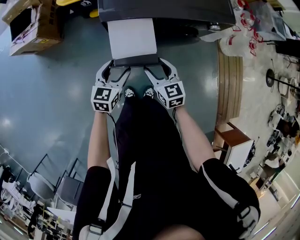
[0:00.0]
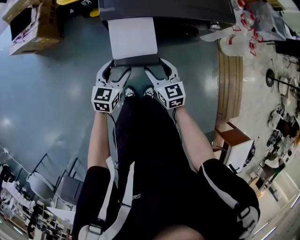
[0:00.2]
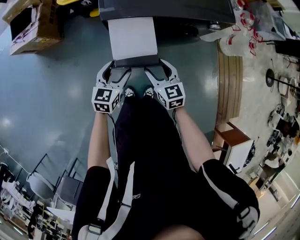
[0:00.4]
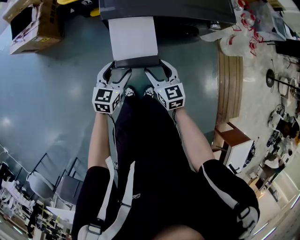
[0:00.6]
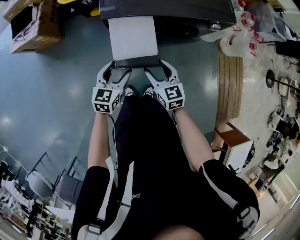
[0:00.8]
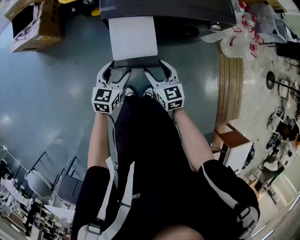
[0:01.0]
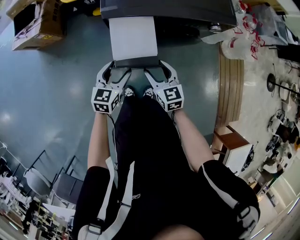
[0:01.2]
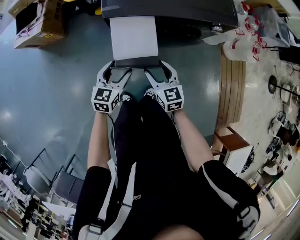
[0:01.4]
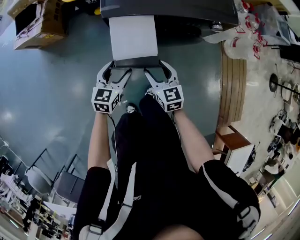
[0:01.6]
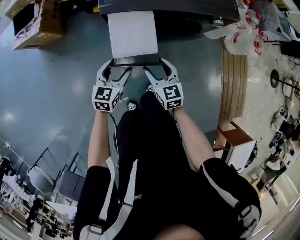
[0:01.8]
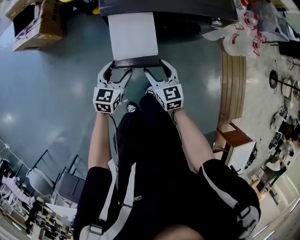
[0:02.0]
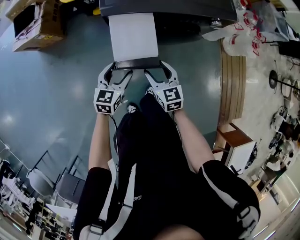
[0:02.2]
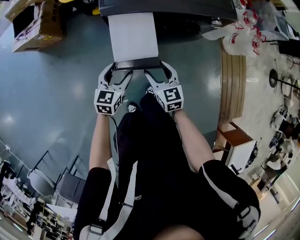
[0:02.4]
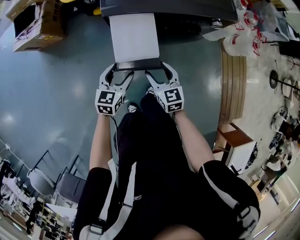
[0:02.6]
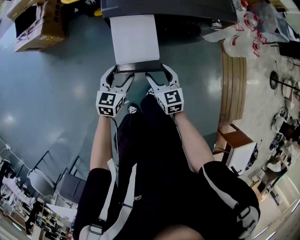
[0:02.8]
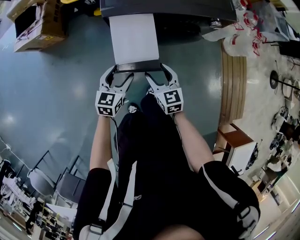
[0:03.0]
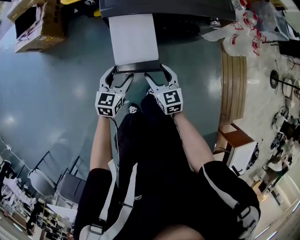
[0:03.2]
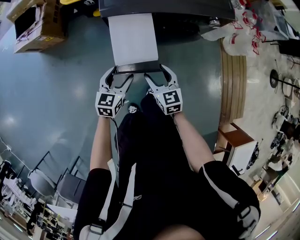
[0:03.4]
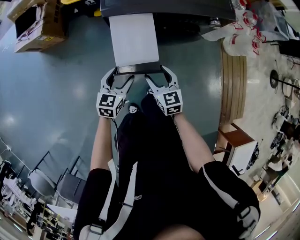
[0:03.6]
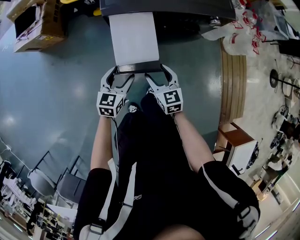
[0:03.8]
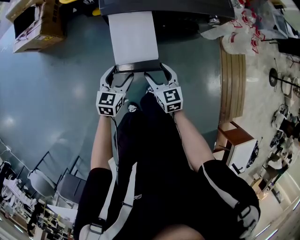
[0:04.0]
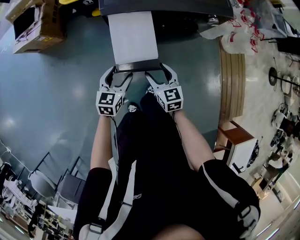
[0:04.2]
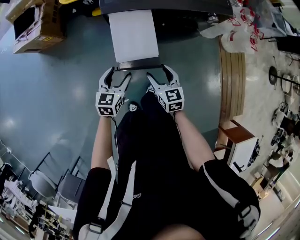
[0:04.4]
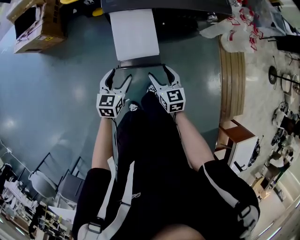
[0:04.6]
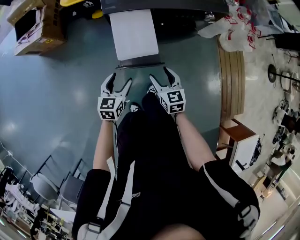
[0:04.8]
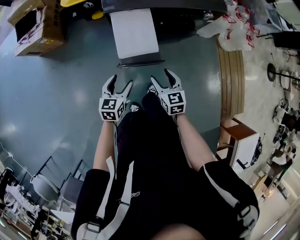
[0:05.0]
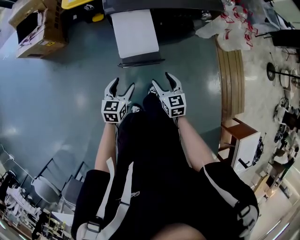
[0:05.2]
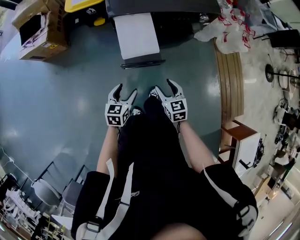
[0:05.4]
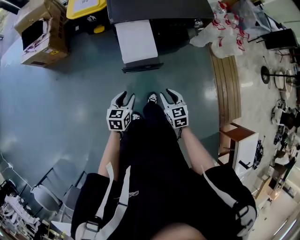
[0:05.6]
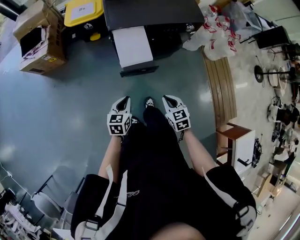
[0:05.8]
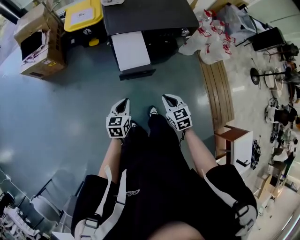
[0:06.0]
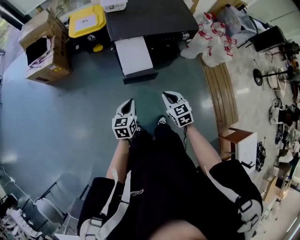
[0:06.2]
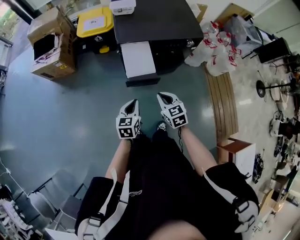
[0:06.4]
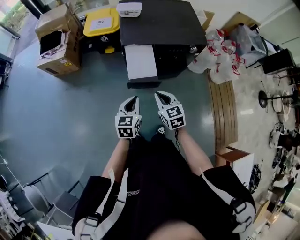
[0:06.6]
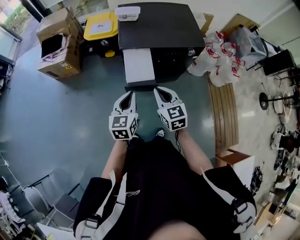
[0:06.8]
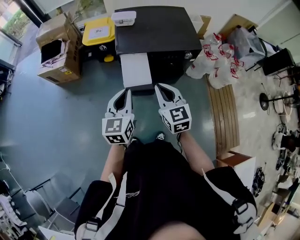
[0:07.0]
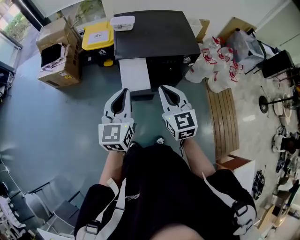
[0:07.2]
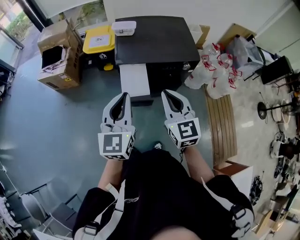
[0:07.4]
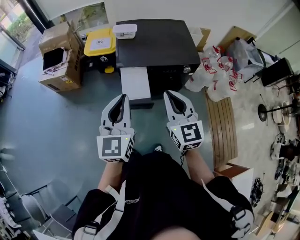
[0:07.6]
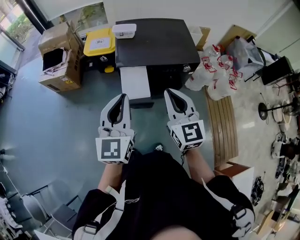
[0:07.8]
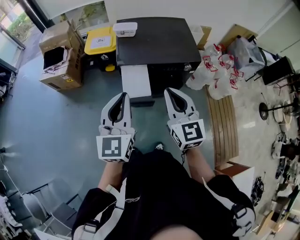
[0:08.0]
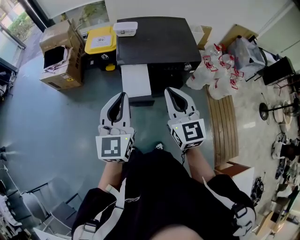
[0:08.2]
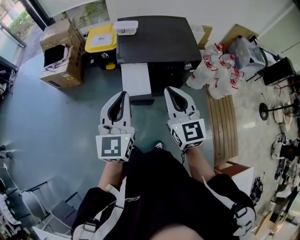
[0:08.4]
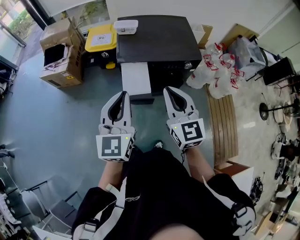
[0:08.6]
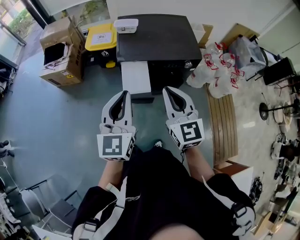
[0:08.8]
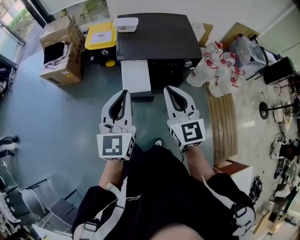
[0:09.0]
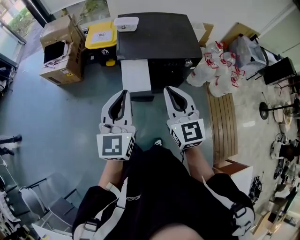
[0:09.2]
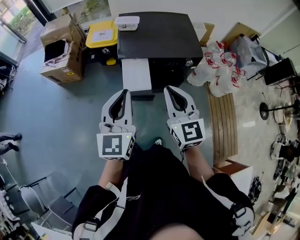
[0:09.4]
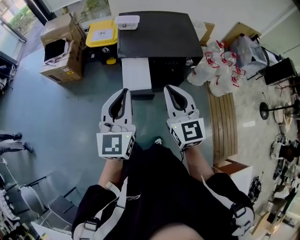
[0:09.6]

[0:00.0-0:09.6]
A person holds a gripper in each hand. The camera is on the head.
0:00.0 to 0:03.2: There are only small adjustments of the grippers.
0:03.2 to 0:04.8: The left gripper shifts about 5 cm backward; the right gripper moves about 5 cm.
0:04.8 to 0:06.4: The two grippers go roughly 15 cm upward and backward. The left gripper closes its fingers. The right gripper closes.
0:06.4 to 0:08.0: The grippers both shift upward by roughly 30 cm. The left gripper changes its angle by approximately 40 degrees. The right gripper changes its angle by roughly 30 degrees.
0:08.0 to 0:09.6: The grippers make only small movements.

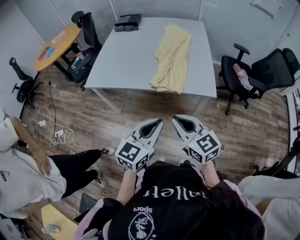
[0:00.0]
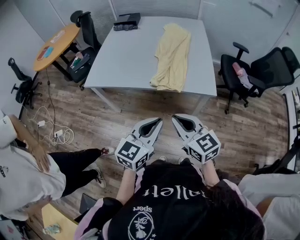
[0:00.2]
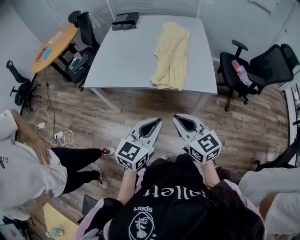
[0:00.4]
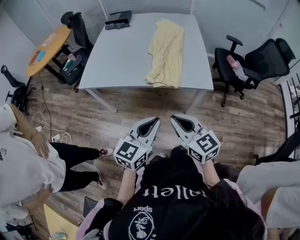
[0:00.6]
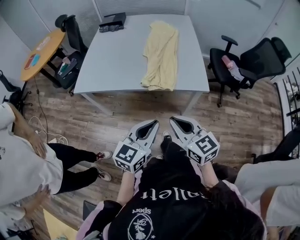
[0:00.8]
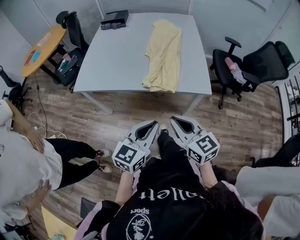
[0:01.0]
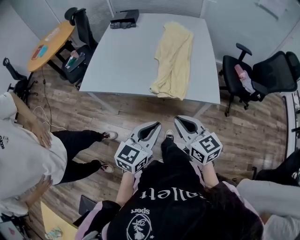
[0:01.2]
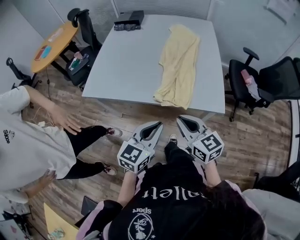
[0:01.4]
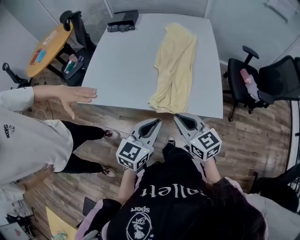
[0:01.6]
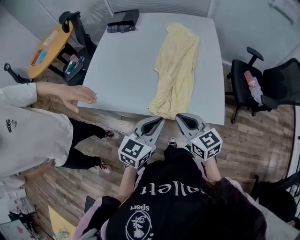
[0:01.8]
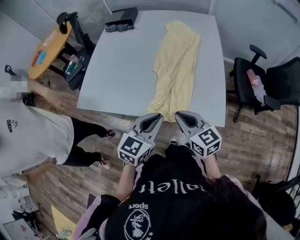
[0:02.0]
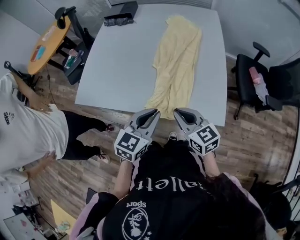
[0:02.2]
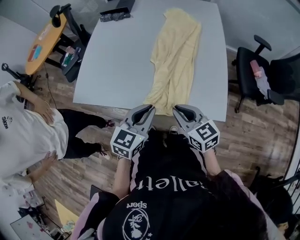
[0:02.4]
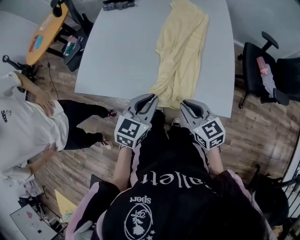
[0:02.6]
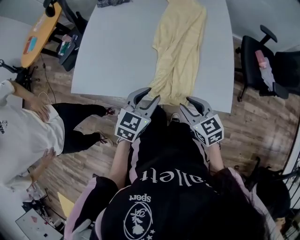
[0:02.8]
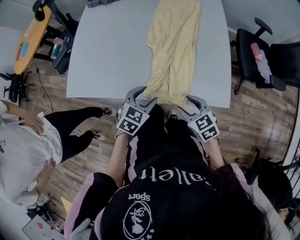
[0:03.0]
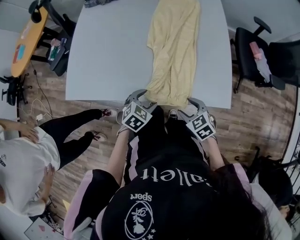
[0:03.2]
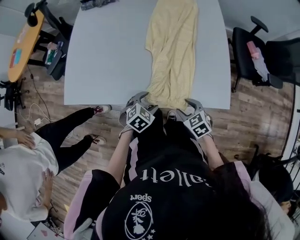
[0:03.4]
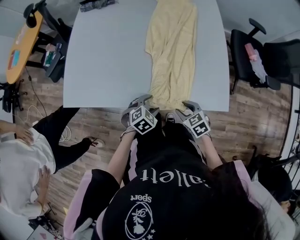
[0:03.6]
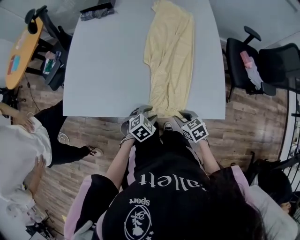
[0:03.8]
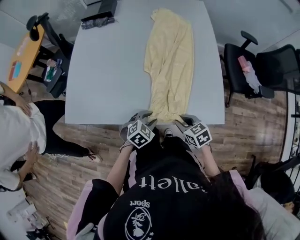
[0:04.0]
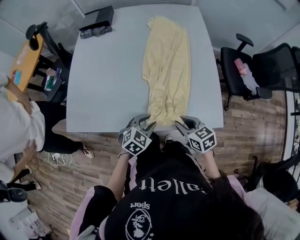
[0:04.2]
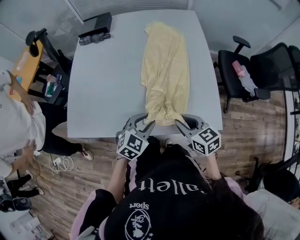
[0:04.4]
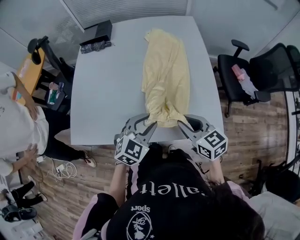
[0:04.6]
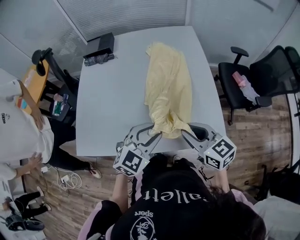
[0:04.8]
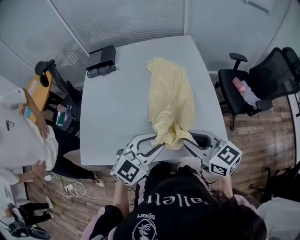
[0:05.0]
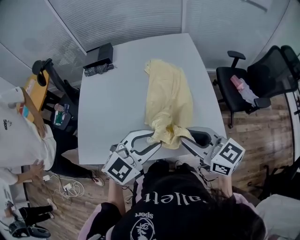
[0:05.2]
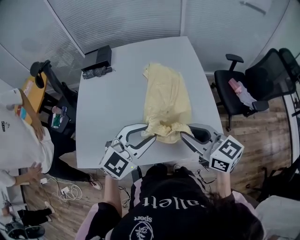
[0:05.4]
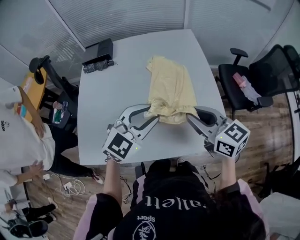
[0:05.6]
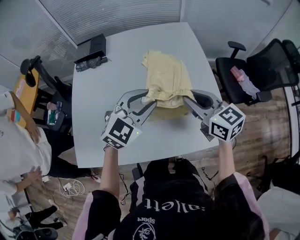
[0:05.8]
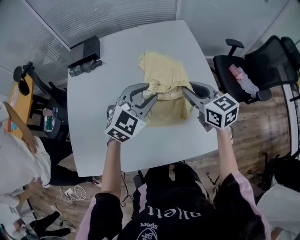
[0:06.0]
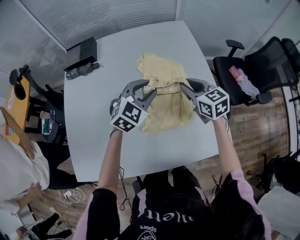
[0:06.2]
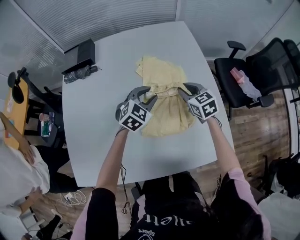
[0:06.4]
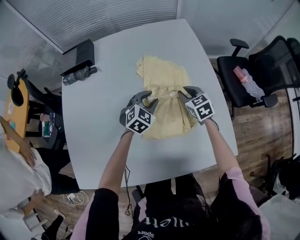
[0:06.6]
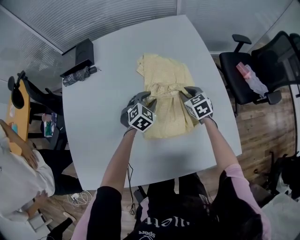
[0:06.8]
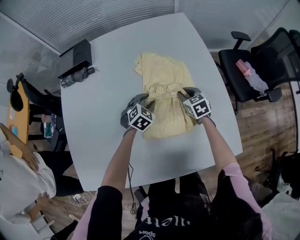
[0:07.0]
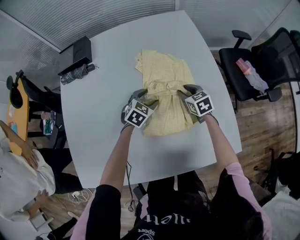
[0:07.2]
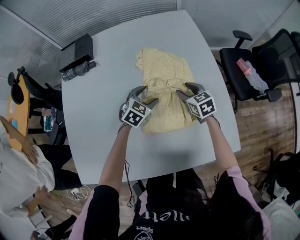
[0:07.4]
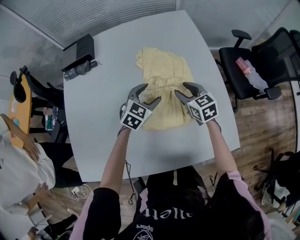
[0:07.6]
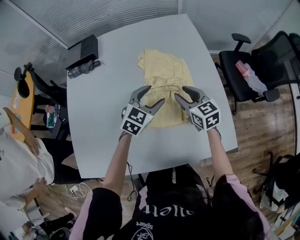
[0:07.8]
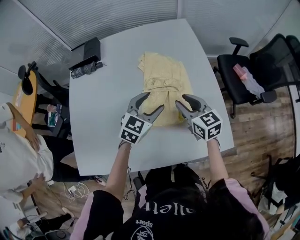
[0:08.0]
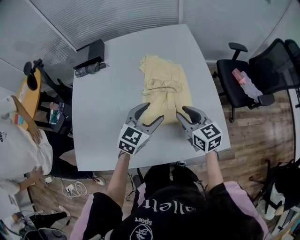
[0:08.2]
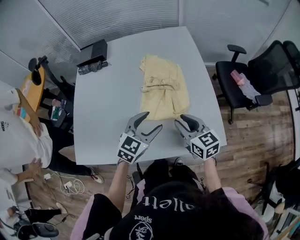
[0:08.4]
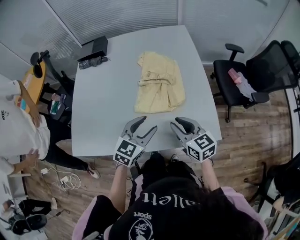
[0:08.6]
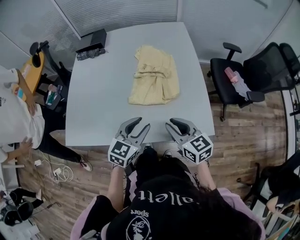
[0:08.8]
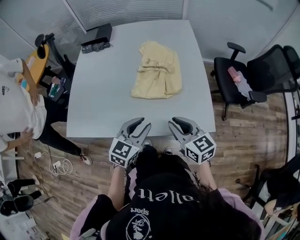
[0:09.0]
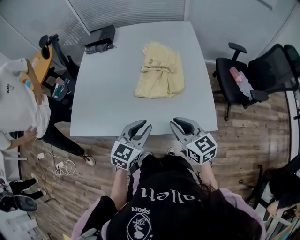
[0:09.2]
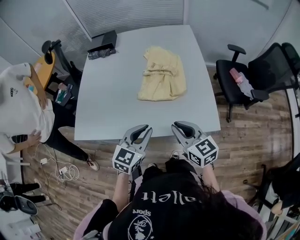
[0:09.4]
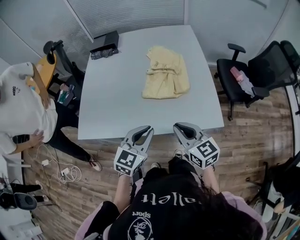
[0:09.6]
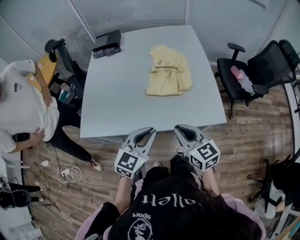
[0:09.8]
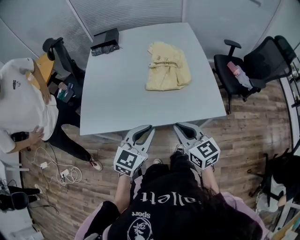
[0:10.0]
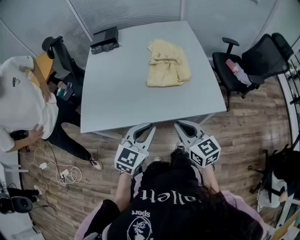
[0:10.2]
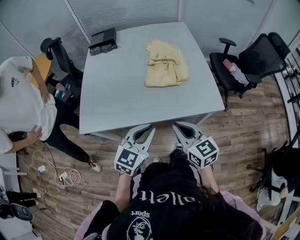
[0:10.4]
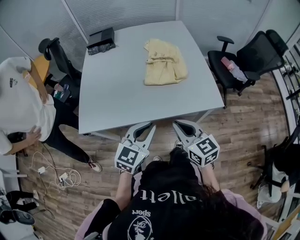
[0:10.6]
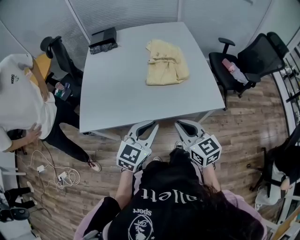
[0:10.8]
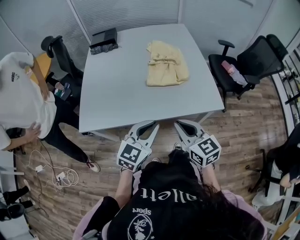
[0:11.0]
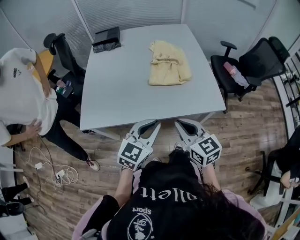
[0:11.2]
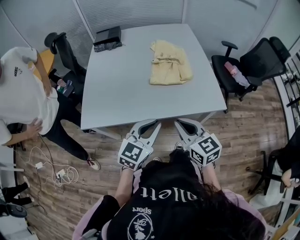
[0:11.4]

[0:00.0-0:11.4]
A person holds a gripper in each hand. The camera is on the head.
0:00.0 to 0:01.4: The two grippers go roughly 15 cm forward.
0:01.4 to 0:02.8: The left gripper moves forward and downward, roughly 20 cm, changes its angle by about 20 degrees, and opens; the right gripper shifts roughly 15 cm forward, downward and to the right, and opens its fingers.
0:02.8 to 0:04.2: The left gripper goes approximately 10 cm downward, changes its angle by about 20 degrees, and opens, then closes once more; the right gripper moves about 15 cm downward and comes back, and opens, then closes again.
0:04.2 to 0:05.6: The grippers both shift upward and forward by about 25 cm. The right gripper turns by about 30 degrees, while the left gripper swivels some 30 degrees.
0:05.6 to 0:07.2: The two grippers go roughly 40 cm downward and forward. The right gripper swivels roughly 30 degrees; the left gripper swivels approximately 30 degrees, and opens.
0:07.2 to 0:08.6: Both grippers move backward and upward, roughly 35 cm. The right gripper changes its angle by some 20 degrees. The left gripper swivels about 20 degrees.
0:08.6 to 0:10.0: Both grippers move backward and to the left, about 20 cm. The left gripper closes its fingers.
0:10.0 to 0:11.4: The right gripper shifts by roughly 5 cm.

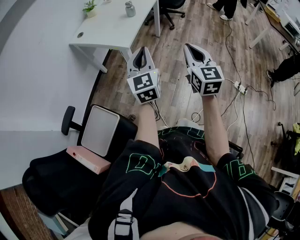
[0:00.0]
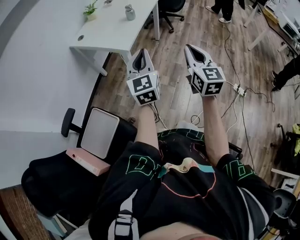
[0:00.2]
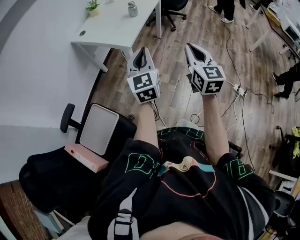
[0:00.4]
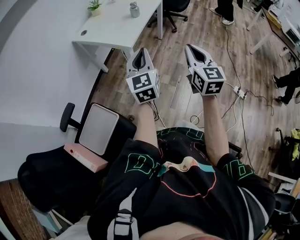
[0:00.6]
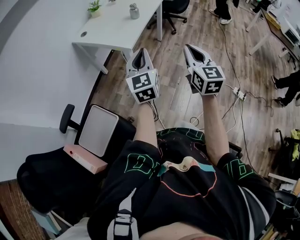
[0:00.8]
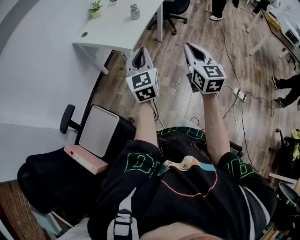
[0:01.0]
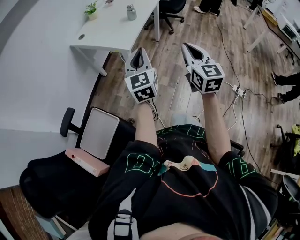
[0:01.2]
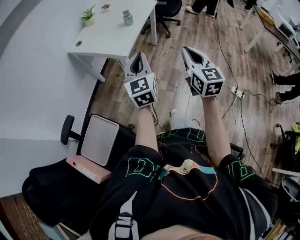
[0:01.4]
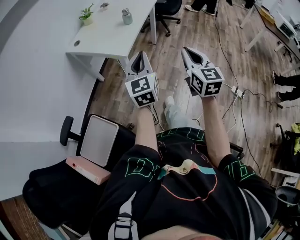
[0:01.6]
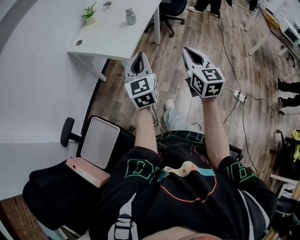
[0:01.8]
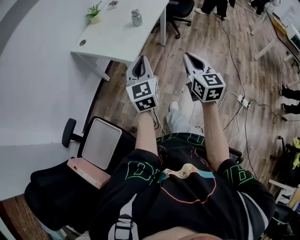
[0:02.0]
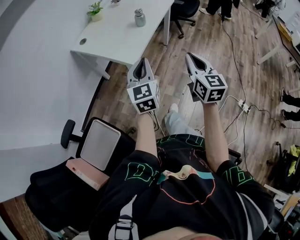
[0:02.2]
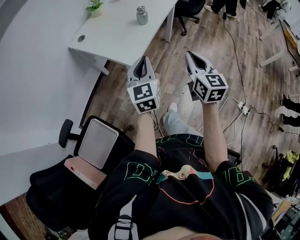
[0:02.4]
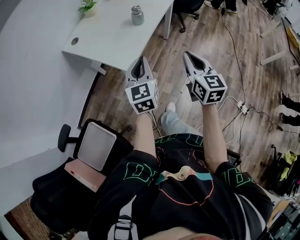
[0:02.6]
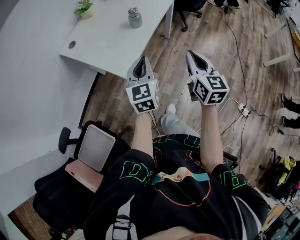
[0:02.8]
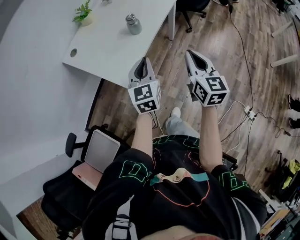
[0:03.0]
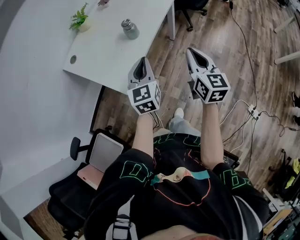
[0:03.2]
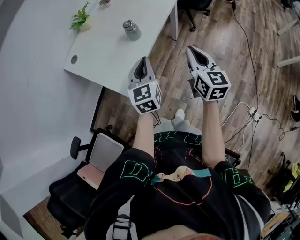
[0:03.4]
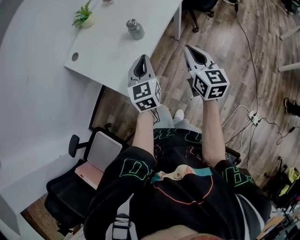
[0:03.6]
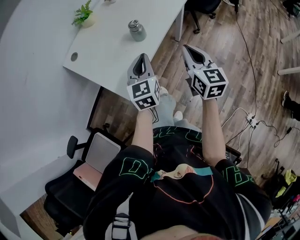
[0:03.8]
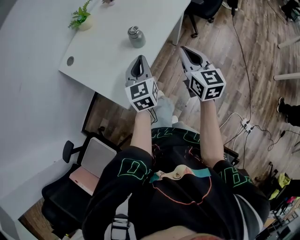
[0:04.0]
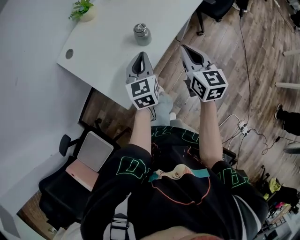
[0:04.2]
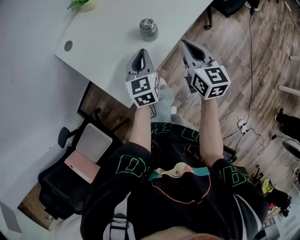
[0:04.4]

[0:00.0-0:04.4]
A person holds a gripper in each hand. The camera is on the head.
0:00.0 to 0:01.4: The grippers move only a little.
0:01.4 to 0:03.0: The two grippers go roughly 35 cm forward.
0:03.0 to 0:04.4: The right gripper is displaced forward by some 25 cm. Meanwhile the left gripper is displaced forward and downward by about 20 cm.
